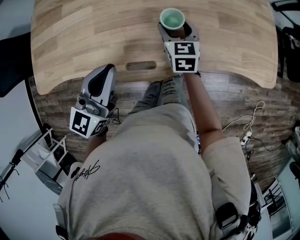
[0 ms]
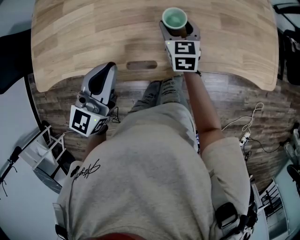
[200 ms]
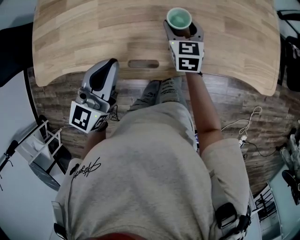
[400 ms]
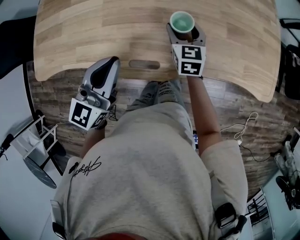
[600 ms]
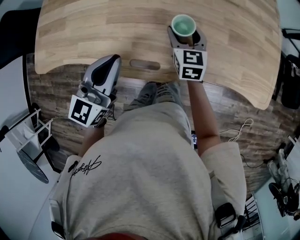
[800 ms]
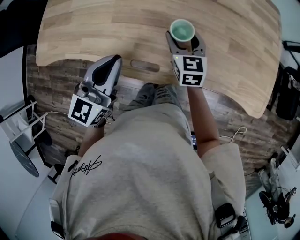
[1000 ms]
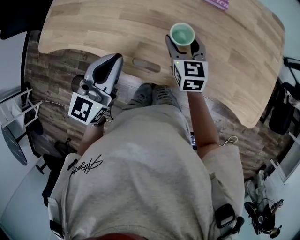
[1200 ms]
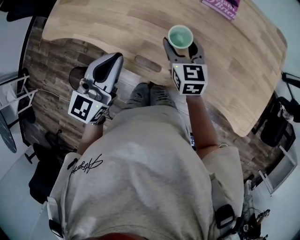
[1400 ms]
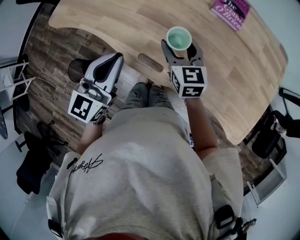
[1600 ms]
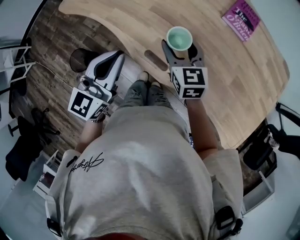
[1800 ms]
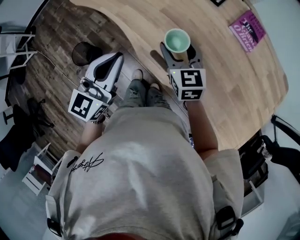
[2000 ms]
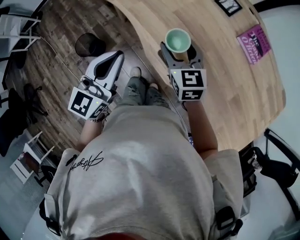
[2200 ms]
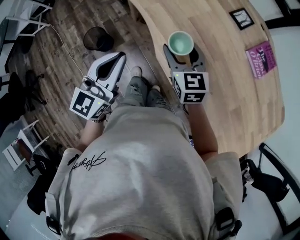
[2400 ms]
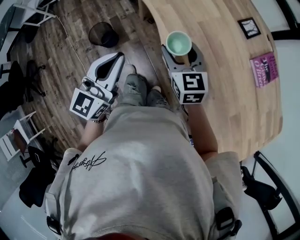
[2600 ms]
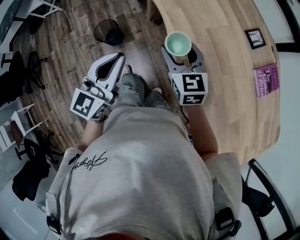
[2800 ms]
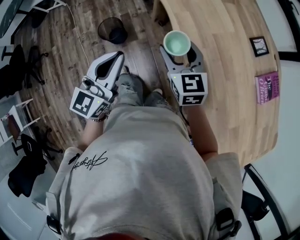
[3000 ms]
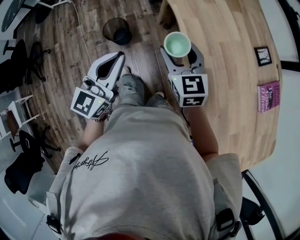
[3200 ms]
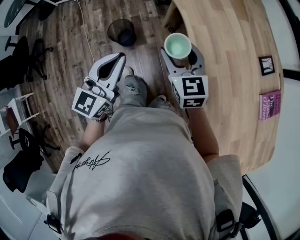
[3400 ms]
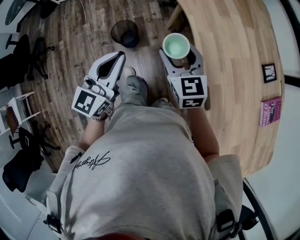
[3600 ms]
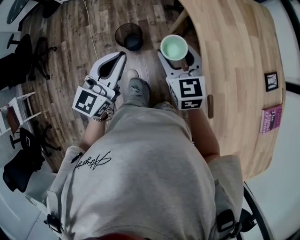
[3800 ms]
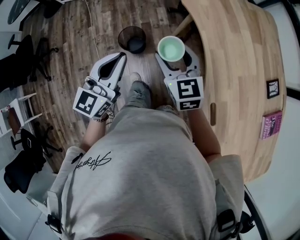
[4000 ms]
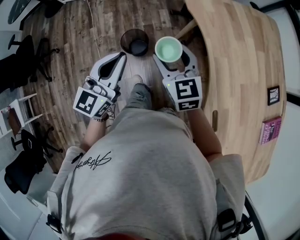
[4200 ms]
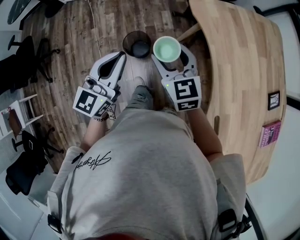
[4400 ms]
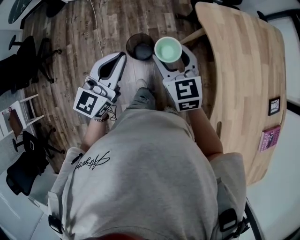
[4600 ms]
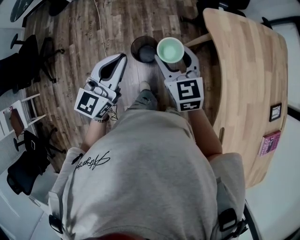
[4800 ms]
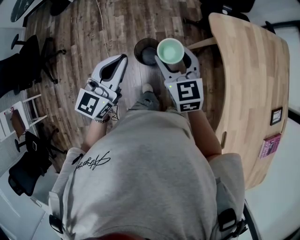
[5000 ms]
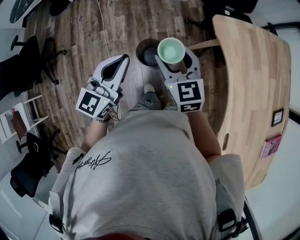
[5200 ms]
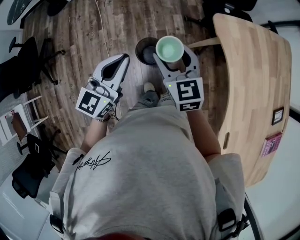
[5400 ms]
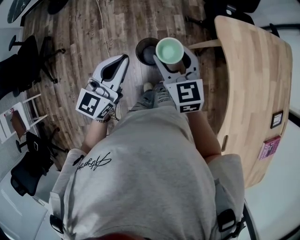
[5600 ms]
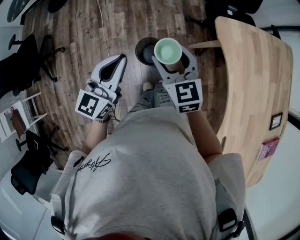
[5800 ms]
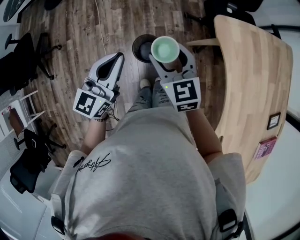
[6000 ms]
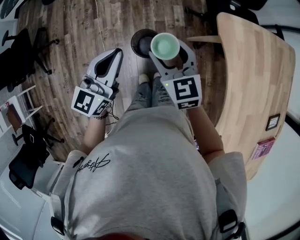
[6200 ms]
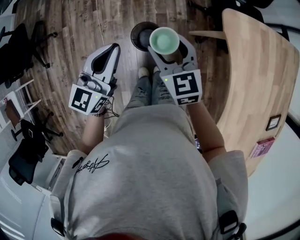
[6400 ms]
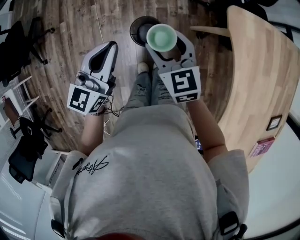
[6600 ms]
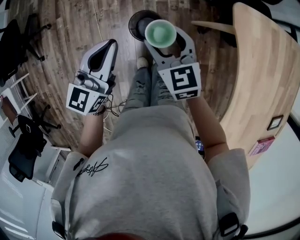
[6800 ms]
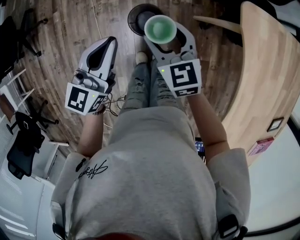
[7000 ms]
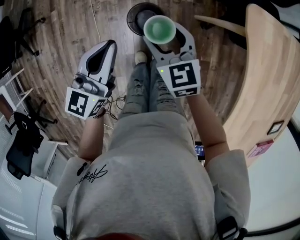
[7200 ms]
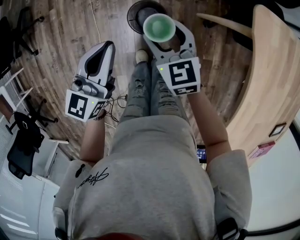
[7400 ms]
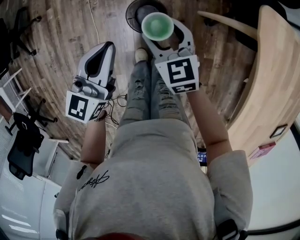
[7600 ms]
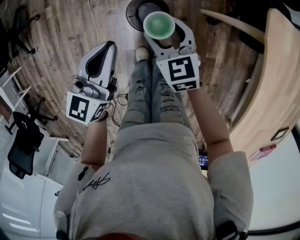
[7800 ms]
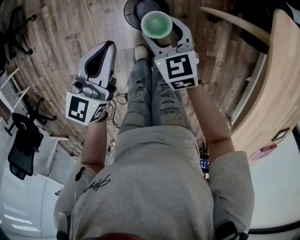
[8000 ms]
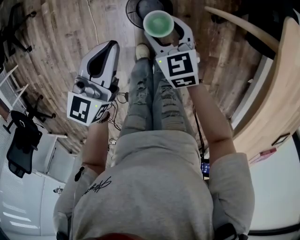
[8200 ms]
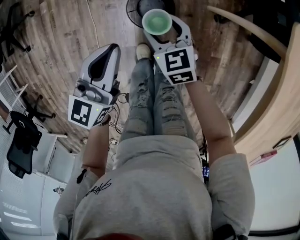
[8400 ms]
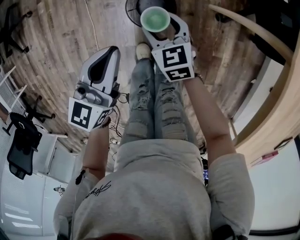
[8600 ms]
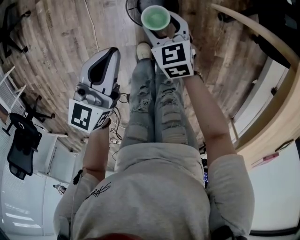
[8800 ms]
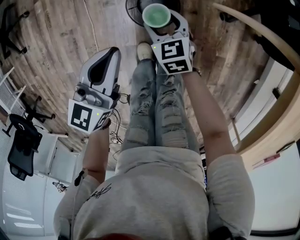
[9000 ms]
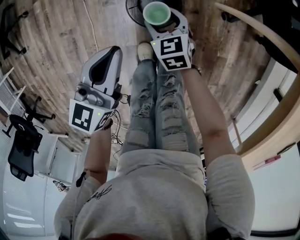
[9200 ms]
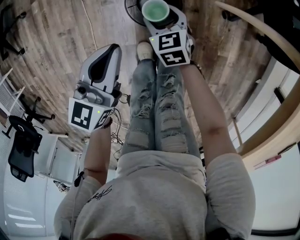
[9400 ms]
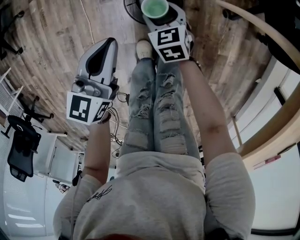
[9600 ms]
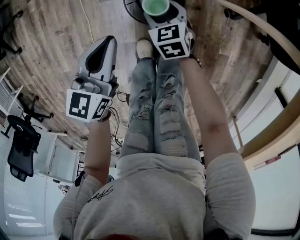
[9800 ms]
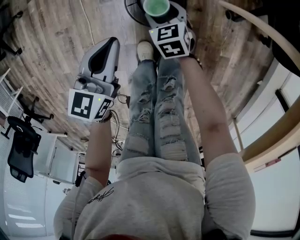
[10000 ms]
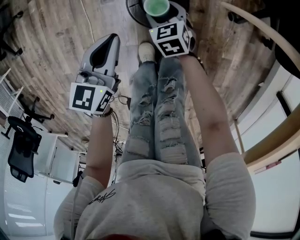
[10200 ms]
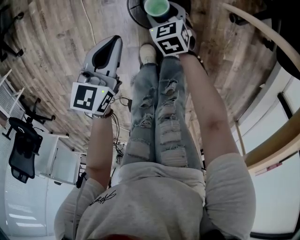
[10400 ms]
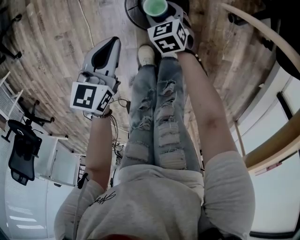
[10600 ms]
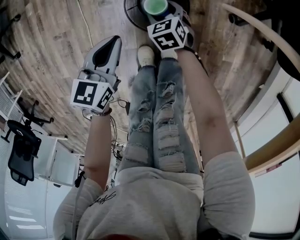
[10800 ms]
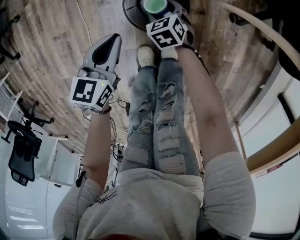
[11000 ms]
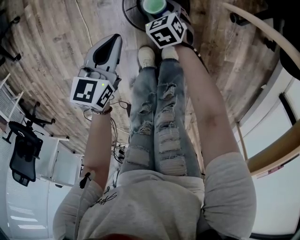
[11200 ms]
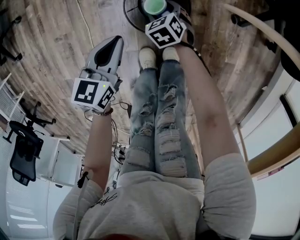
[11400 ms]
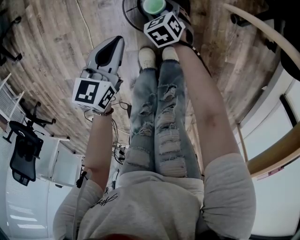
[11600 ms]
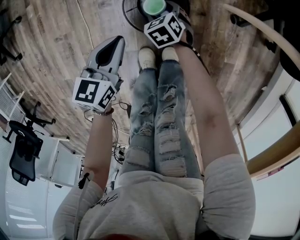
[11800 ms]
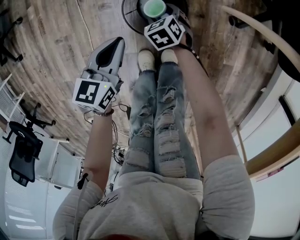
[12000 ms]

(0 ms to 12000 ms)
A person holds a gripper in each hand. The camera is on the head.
0 ms - 1600 ms: The right gripper shifts by about 15 cm, and swivels about 40 degrees; the left gripper changes place by approximately 5 cm, and rotates about 30 degrees.
1600 ms - 3000 ms: The left gripper changes place by approximately 20 cm, and changes its angle by roughly 40 degrees. The right gripper shifts by some 25 cm, and turns by roughly 40 degrees.
3000 ms - 4400 ms: Both grippers travel together to the left and forward, about 30 cm.
4400 ms - 6000 ms: The grippers both shift forward and to the left by roughly 15 cm.
6000 ms - 7600 ms: The two grippers go approximately 20 cm downward.
7600 ms - 9000 ms: The left gripper shifts some 15 cm downward. Meanwhile the right gripper goes some 25 cm downward.
9000 ms - 10400 ms: The grippers both shift downward by roughly 15 cm.
10400 ms - 12000 ms: The right gripper goes about 5 cm downward. Meanwhile the left gripper shifts by roughly 5 cm.

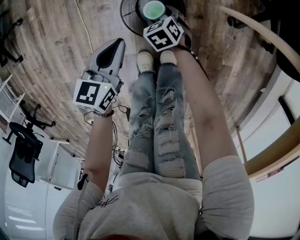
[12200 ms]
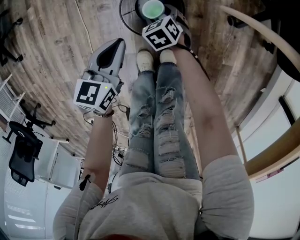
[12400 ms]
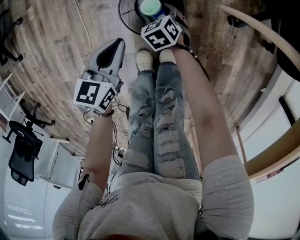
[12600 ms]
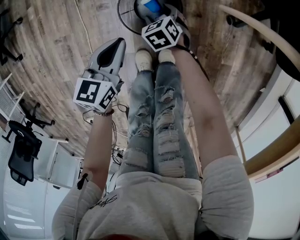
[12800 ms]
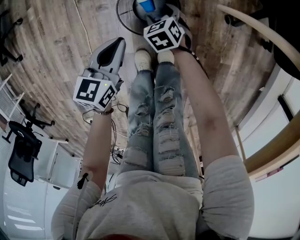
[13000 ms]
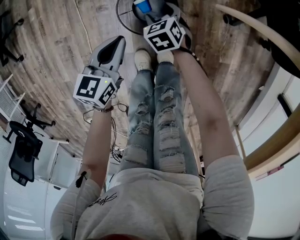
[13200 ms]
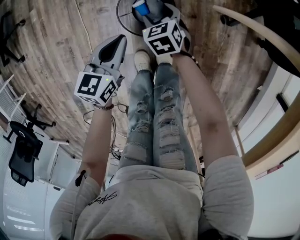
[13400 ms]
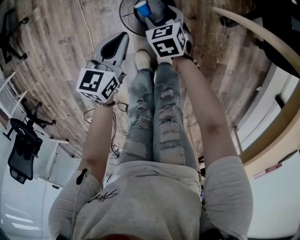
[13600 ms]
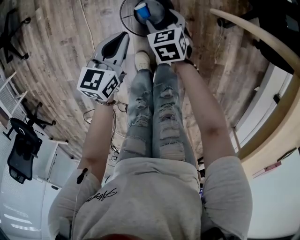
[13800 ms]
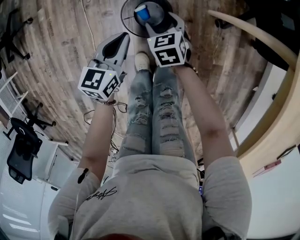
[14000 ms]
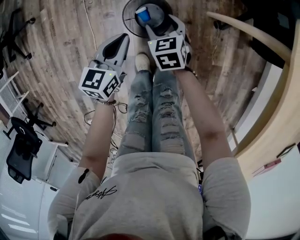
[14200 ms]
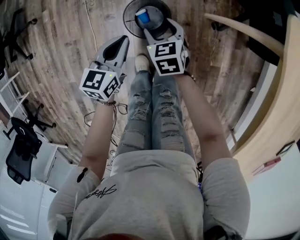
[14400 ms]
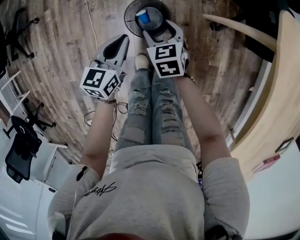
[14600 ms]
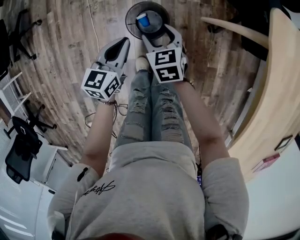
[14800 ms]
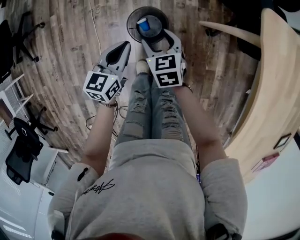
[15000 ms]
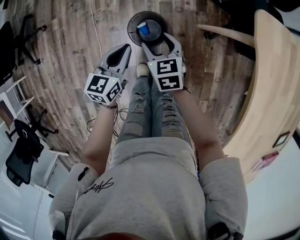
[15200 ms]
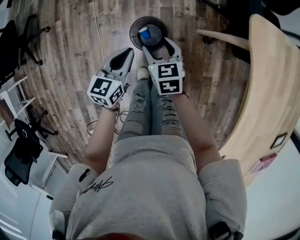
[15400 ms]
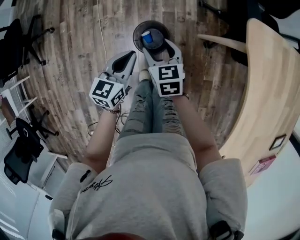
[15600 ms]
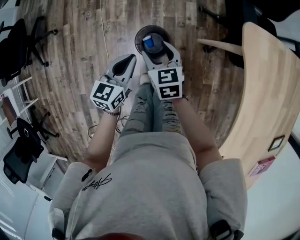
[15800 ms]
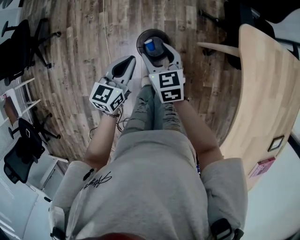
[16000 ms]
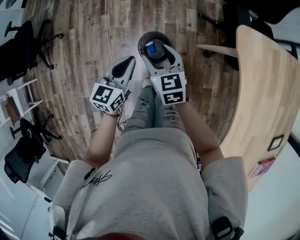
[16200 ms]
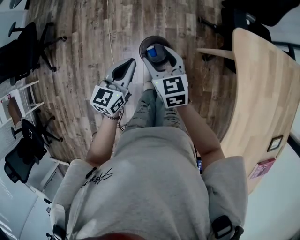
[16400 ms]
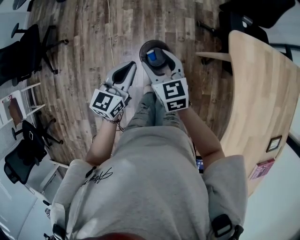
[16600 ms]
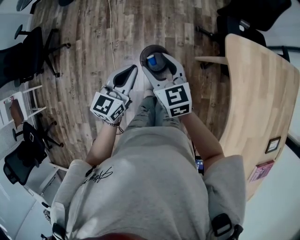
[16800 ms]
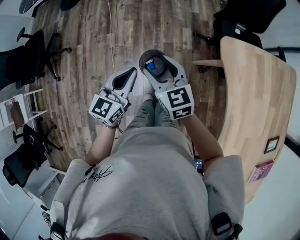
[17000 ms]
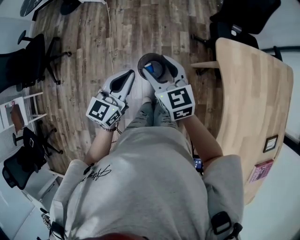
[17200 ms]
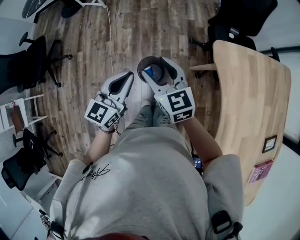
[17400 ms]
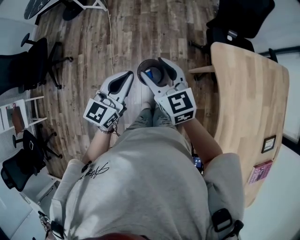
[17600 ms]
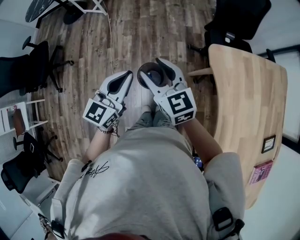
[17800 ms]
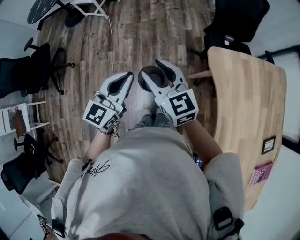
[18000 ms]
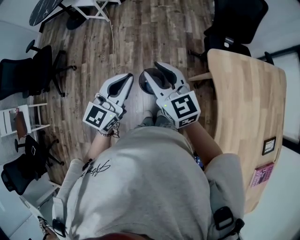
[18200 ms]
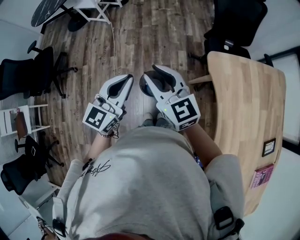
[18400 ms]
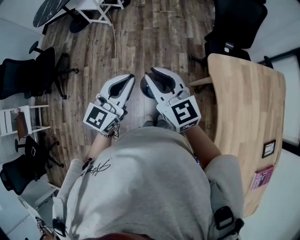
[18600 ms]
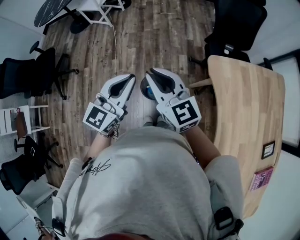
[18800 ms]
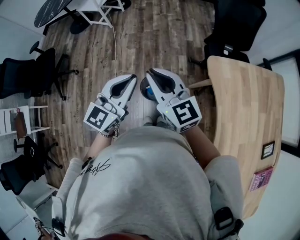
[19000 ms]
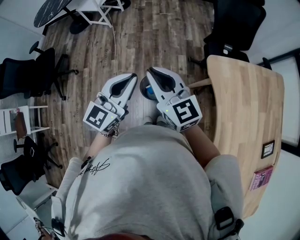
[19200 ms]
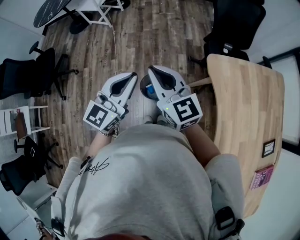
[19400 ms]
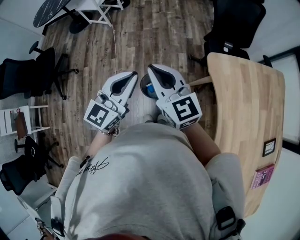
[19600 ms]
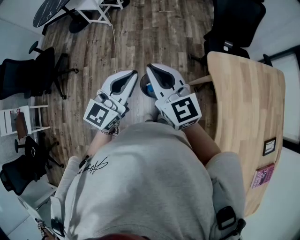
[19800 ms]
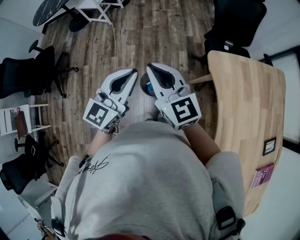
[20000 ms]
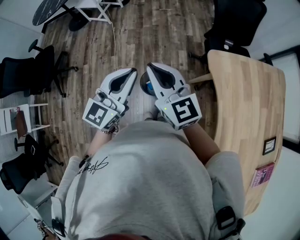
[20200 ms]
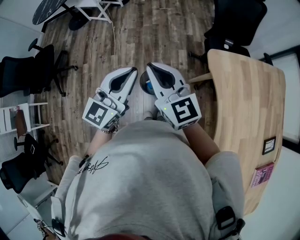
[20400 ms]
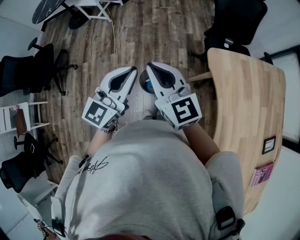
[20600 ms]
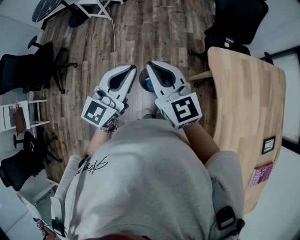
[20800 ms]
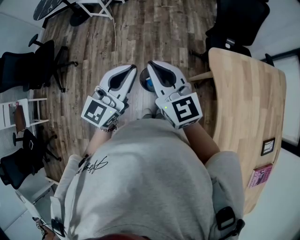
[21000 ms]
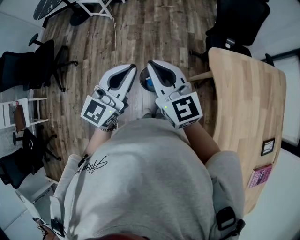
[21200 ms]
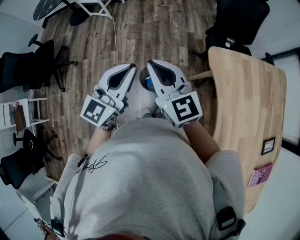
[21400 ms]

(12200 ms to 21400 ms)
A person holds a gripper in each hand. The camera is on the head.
12200 ms - 13800 ms: The right gripper moves upward, roughly 15 cm. The left gripper heads upward, covering roughly 5 cm.
13800 ms - 15200 ms: The right gripper travels upward by approximately 20 cm, while the left gripper is displaced upward by approximately 15 cm.
15200 ms - 16800 ms: Both grippers move upward, roughly 20 cm. The right gripper rotates roughly 20 degrees.
16800 ms - 18400 ms: The two grippers go about 15 cm upward. The right gripper closes.
18400 ms - 19800 ms: The right gripper closes.
19800 ms - 21400 ms: Neither gripper changes place.

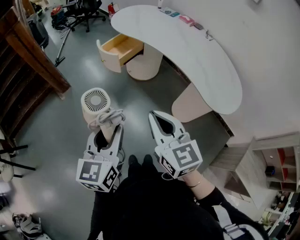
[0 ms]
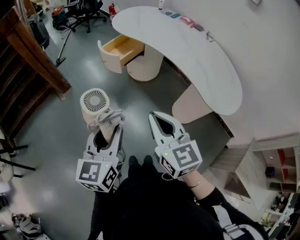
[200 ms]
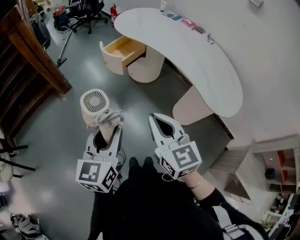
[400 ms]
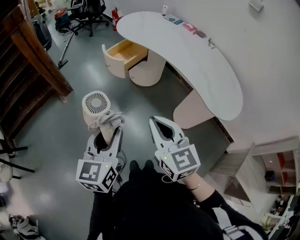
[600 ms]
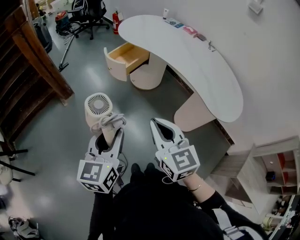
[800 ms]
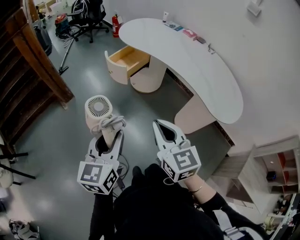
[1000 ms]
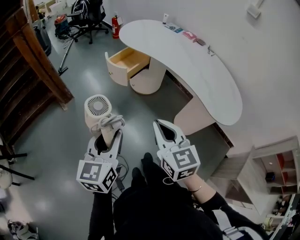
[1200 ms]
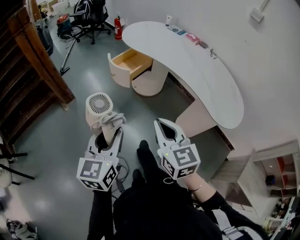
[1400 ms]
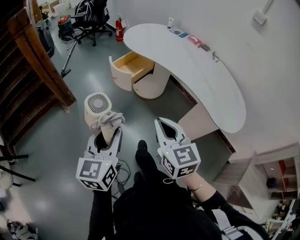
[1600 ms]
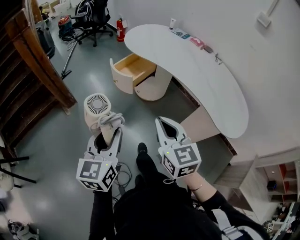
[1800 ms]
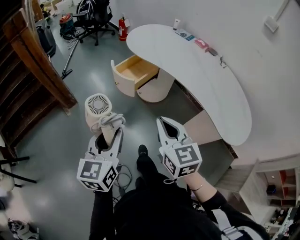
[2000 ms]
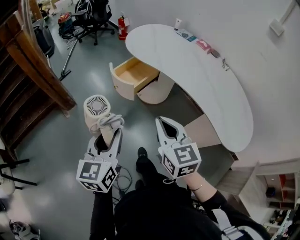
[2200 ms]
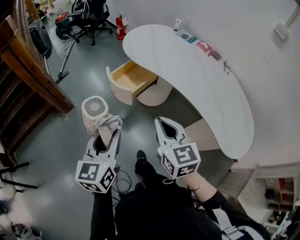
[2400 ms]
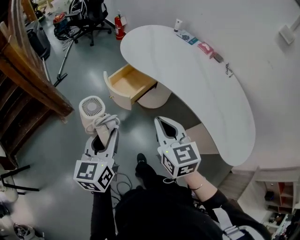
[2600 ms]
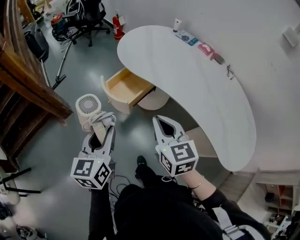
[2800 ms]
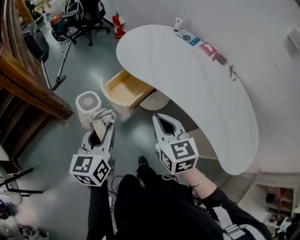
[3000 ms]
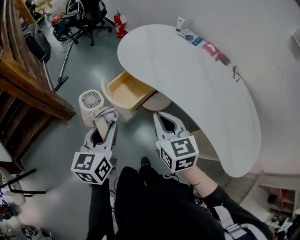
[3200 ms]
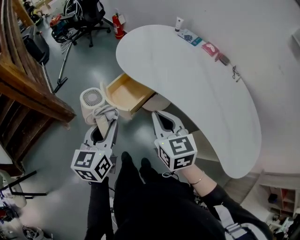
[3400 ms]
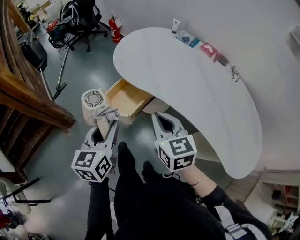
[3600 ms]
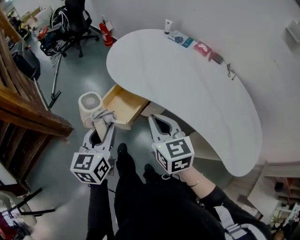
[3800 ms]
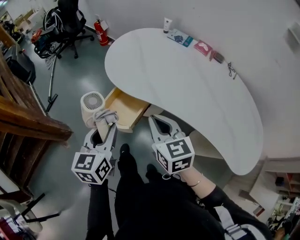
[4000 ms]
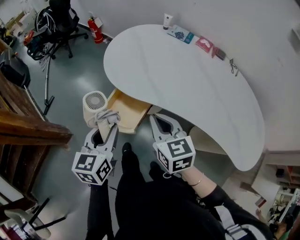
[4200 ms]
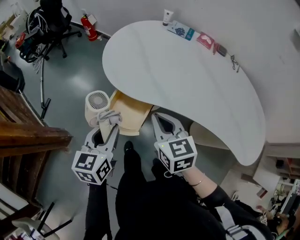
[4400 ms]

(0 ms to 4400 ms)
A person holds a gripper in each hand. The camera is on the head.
0 ms - 1400 ms: The right gripper ends up some 5 cm from where it was, while the left gripper shifts about 5 cm to the left.
1400 ms - 3000 ms: Both grippers move forward, about 30 cm.
3000 ms - 4400 ms: The two grippers go about 15 cm forward. The left gripper turns by roughly 20 degrees.
